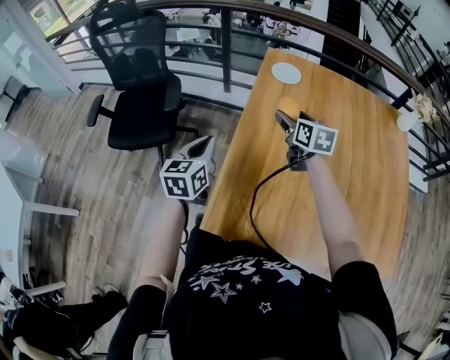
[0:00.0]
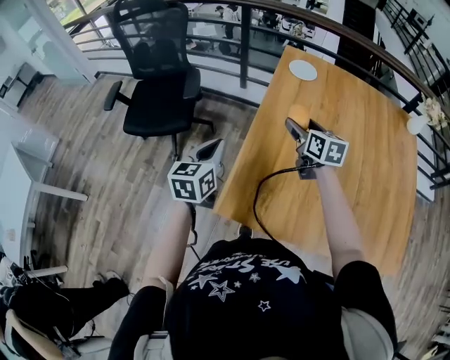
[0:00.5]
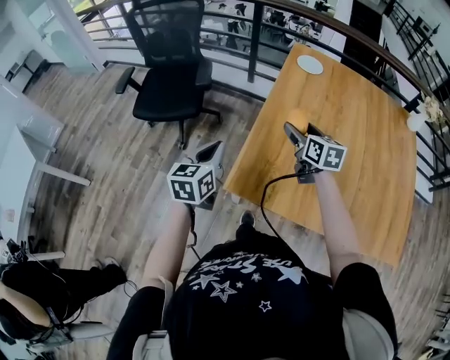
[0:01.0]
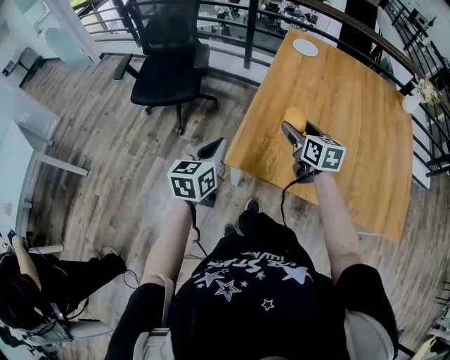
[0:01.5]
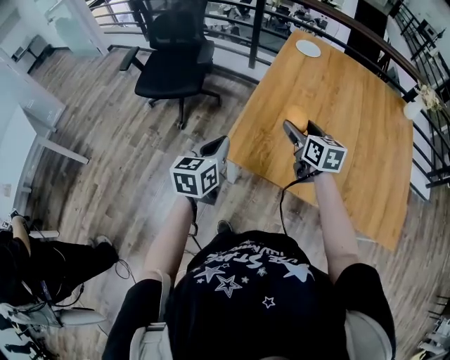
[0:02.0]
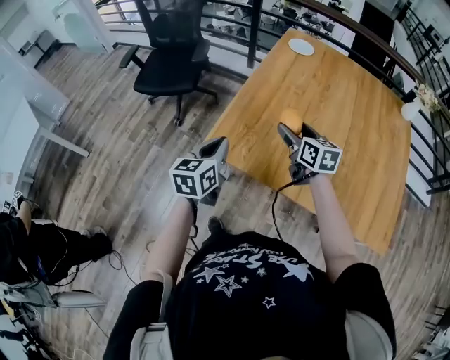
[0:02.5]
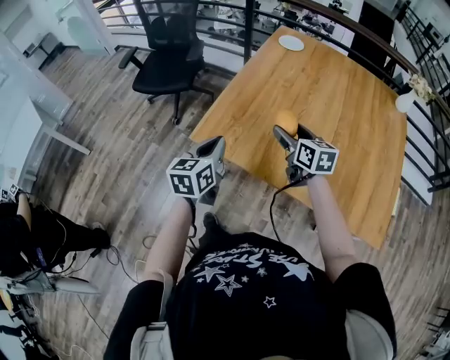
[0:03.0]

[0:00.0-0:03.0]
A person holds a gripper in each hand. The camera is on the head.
0:00.0 to 0:01.5: The two grippers go about 25 cm backward.
0:01.5 to 0:03.0: Both grippers move to the right and backward, roughly 15 cm.

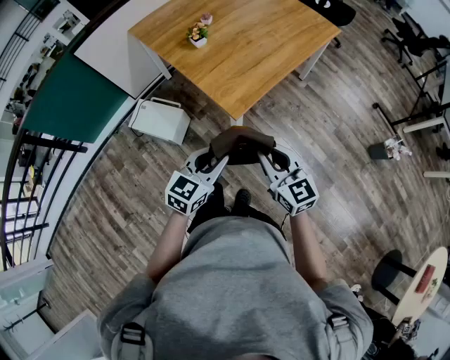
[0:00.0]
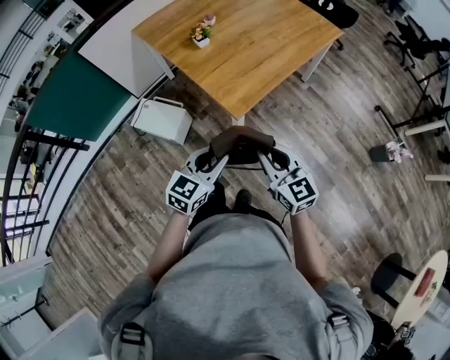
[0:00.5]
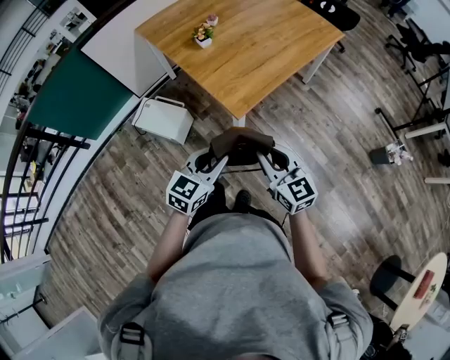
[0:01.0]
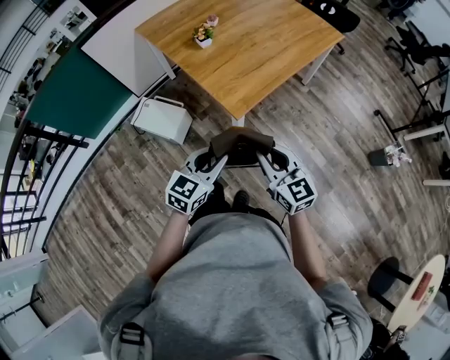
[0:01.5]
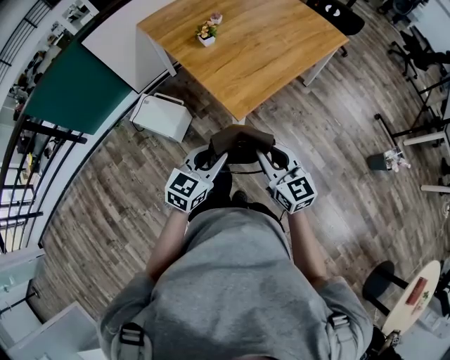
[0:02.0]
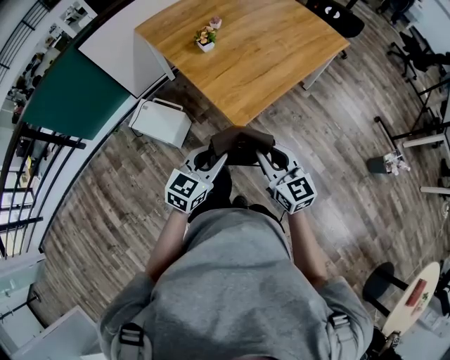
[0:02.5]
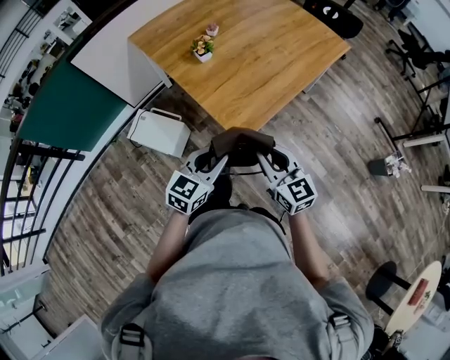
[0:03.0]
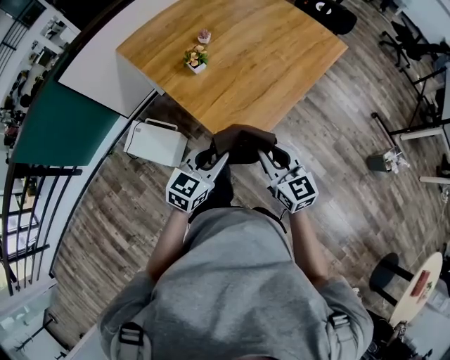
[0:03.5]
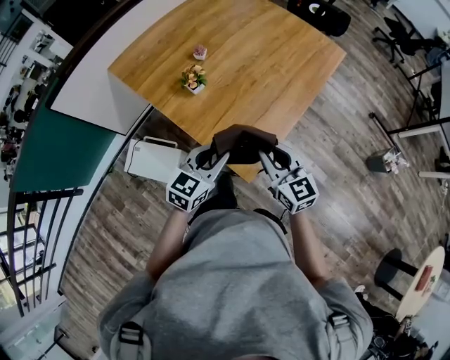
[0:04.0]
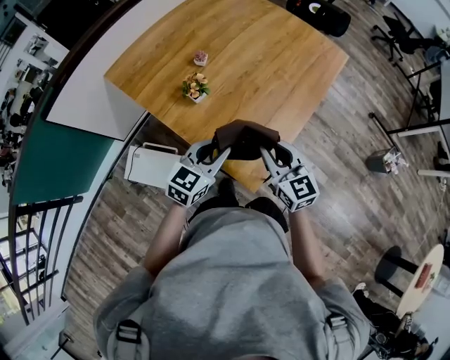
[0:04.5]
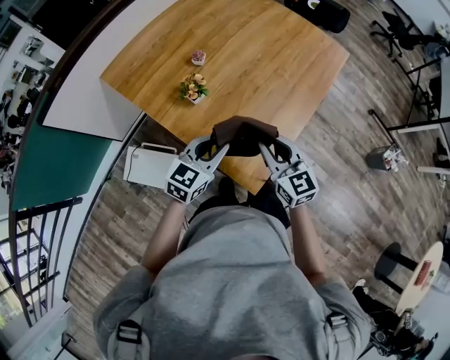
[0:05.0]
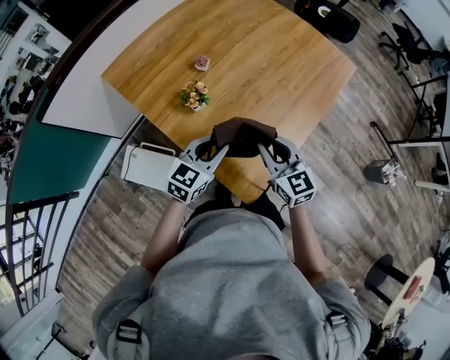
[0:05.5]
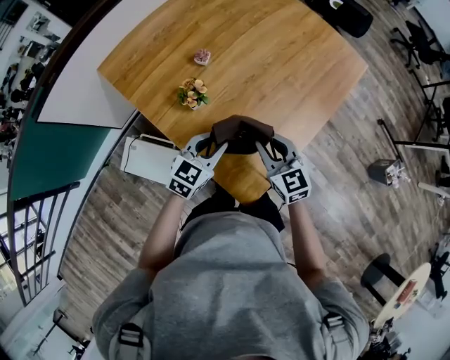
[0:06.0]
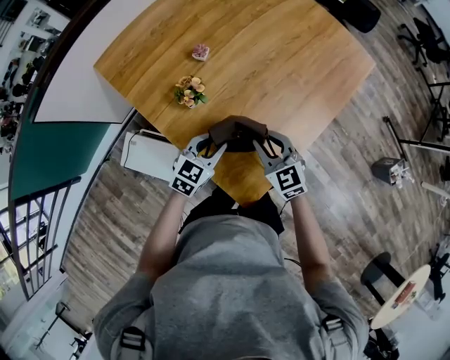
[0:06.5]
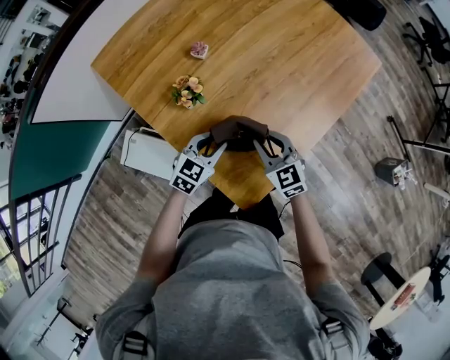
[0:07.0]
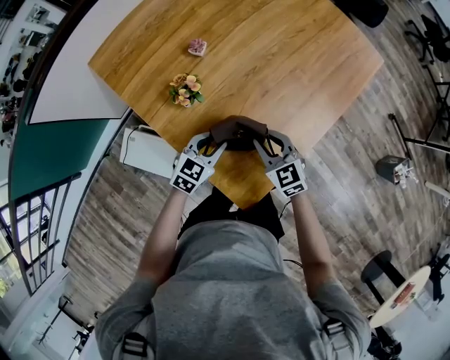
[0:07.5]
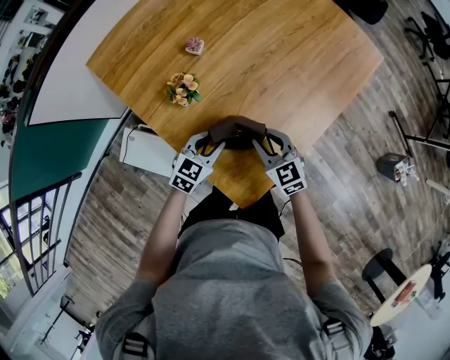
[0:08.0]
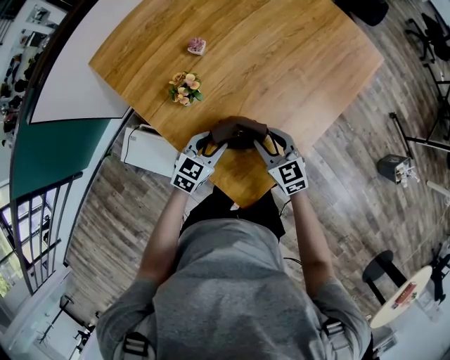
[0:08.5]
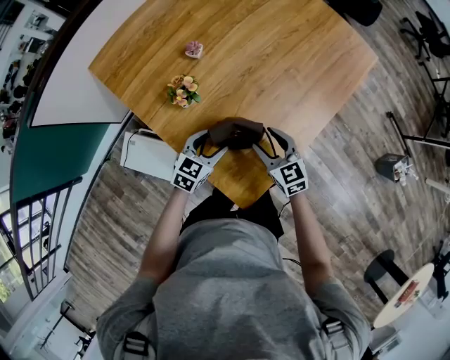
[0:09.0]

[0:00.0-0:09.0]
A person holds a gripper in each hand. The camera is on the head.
0:00.0 to 0:02.0: The grippers move only a little.
0:02.0 to 0:04.5: Both grippers move forward, some 35 cm.
0:04.5 to 0:07.0: Both grippers travel together downward and forward, approximately 20 cm. The right gripper rotates some 20 degrees.
0:07.0 to 0:09.0: The right gripper opens its fingers, while the left gripper opens its fingers.

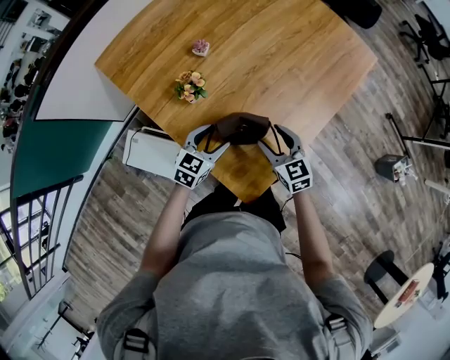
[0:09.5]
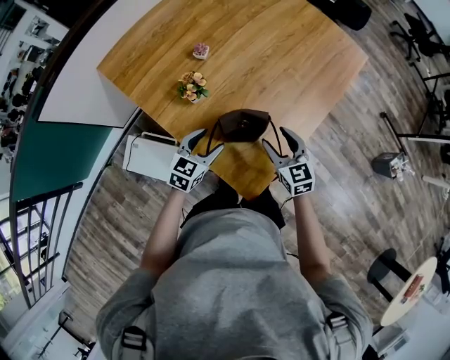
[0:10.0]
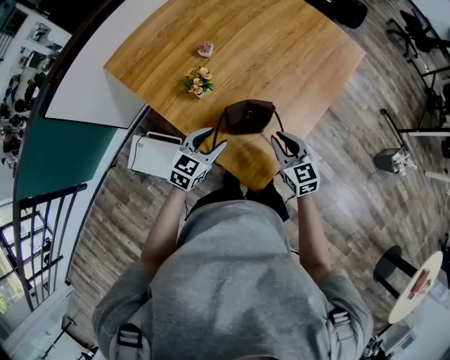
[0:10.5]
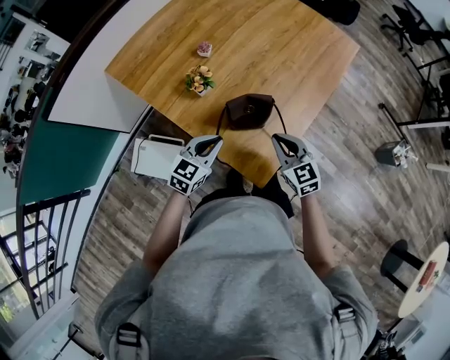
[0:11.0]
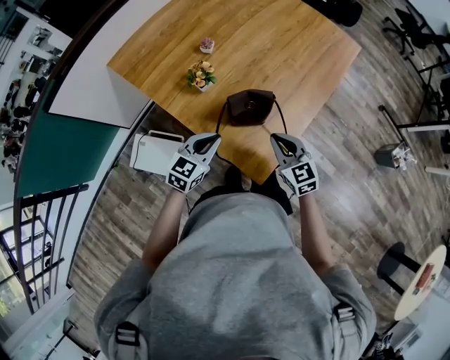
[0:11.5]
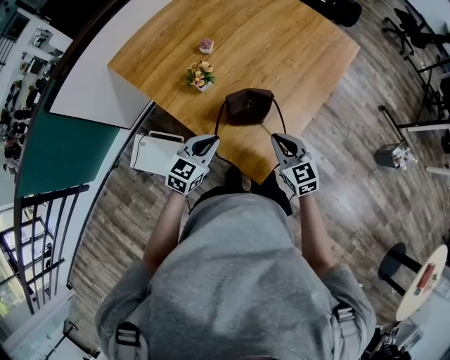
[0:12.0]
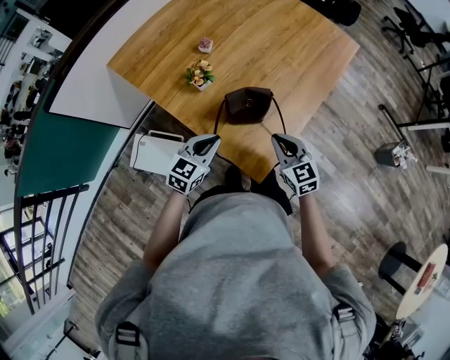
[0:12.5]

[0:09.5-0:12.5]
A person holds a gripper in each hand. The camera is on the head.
0:09.5 to 0:11.0: The two grippers go some 10 cm backward and upward. The left gripper closes up. Meanwhile the right gripper closes up.
0:11.0 to 0:12.5: The grippers move only a little.

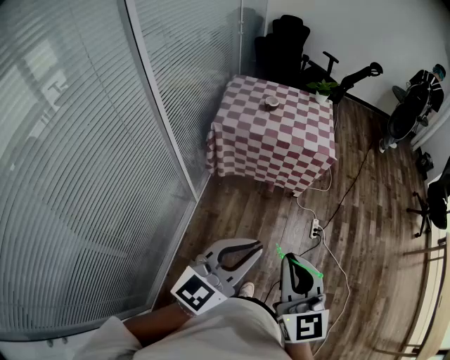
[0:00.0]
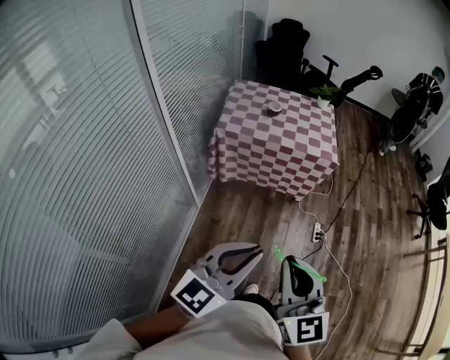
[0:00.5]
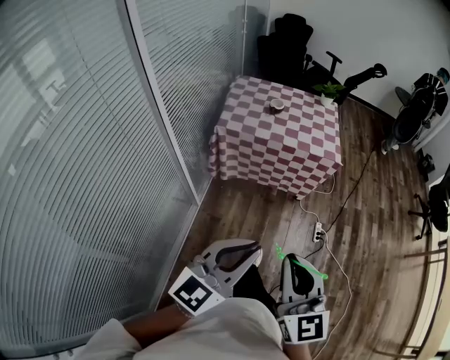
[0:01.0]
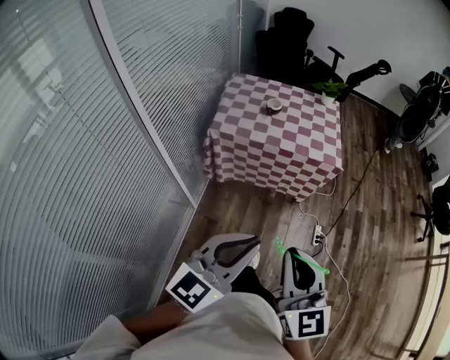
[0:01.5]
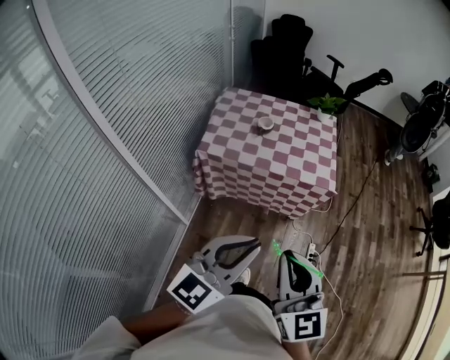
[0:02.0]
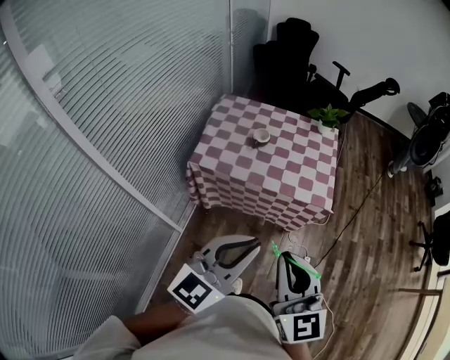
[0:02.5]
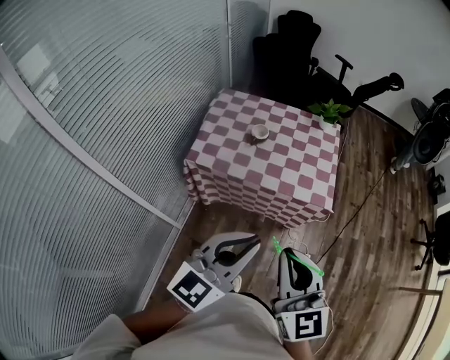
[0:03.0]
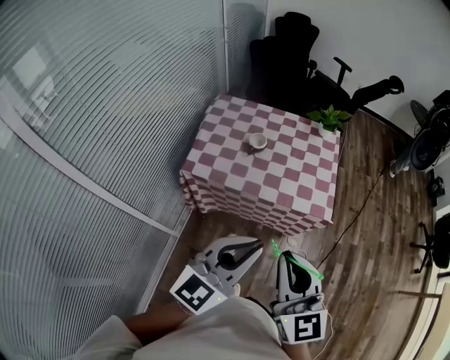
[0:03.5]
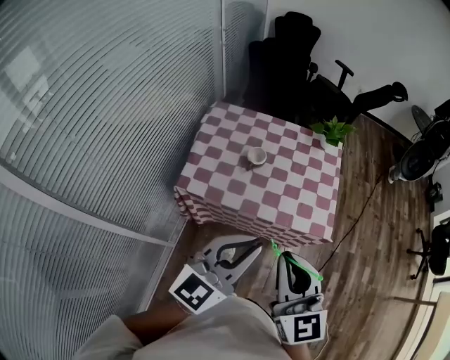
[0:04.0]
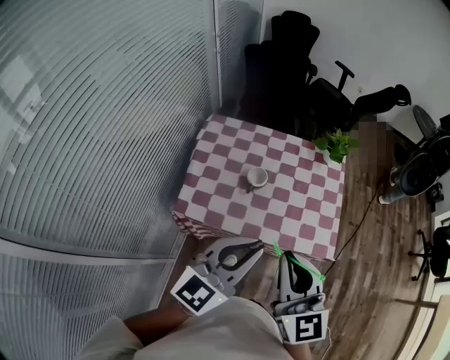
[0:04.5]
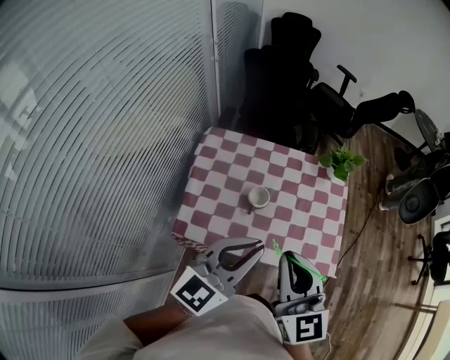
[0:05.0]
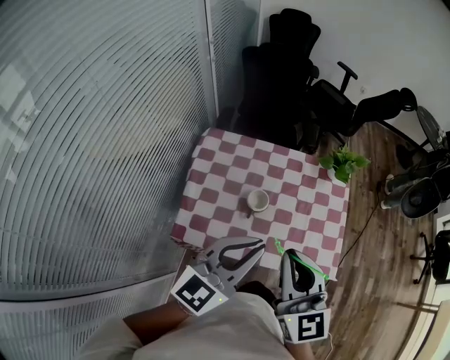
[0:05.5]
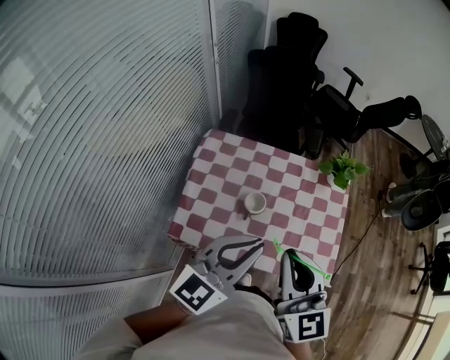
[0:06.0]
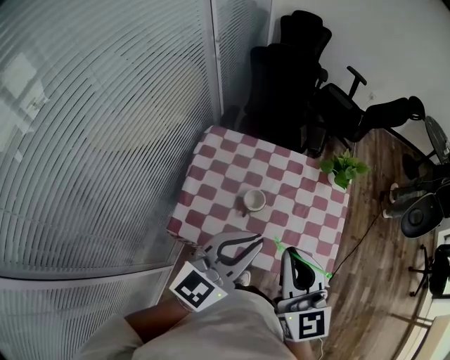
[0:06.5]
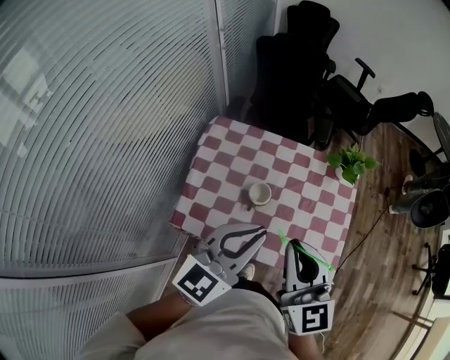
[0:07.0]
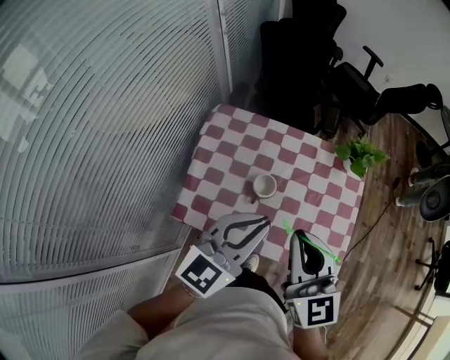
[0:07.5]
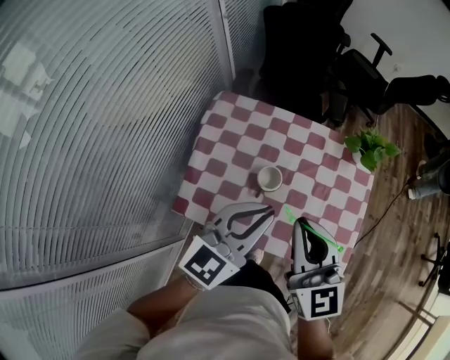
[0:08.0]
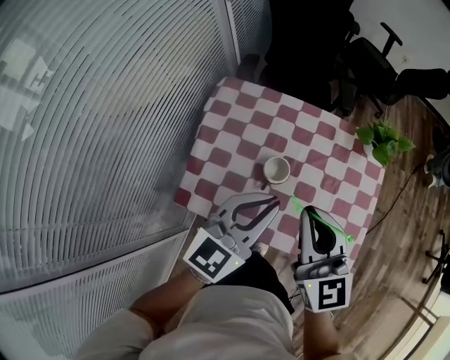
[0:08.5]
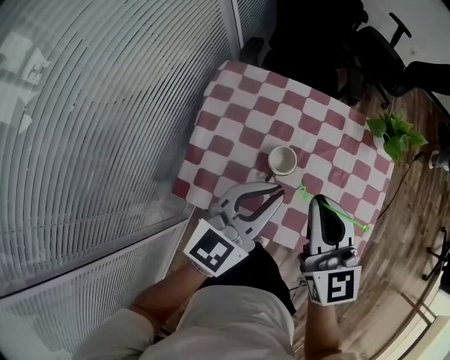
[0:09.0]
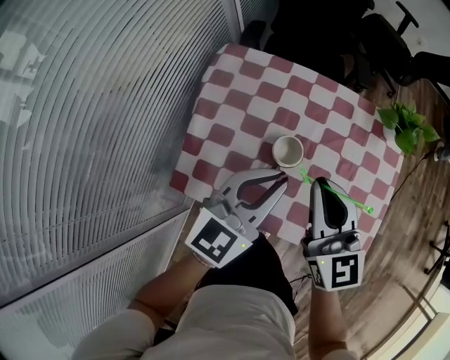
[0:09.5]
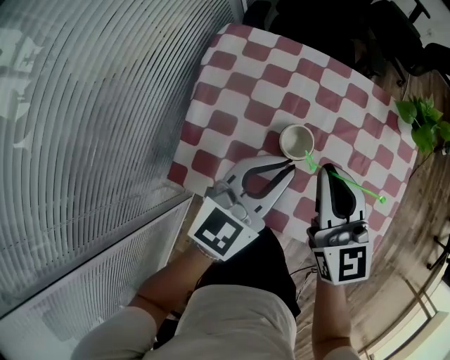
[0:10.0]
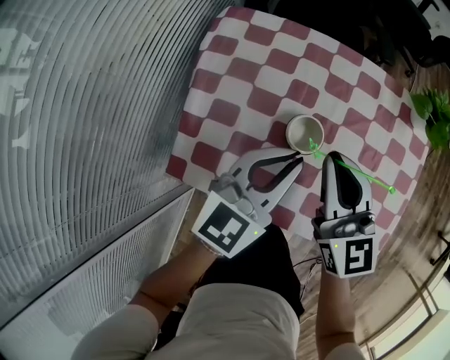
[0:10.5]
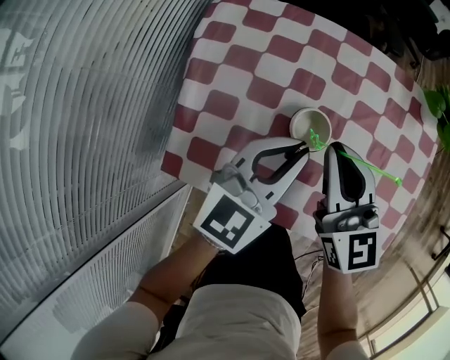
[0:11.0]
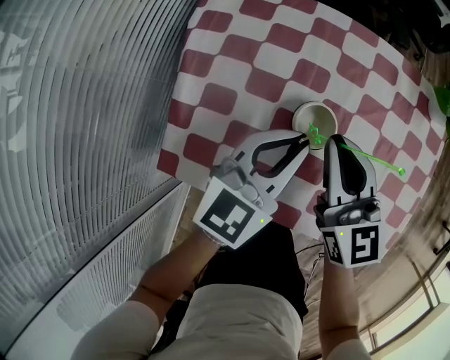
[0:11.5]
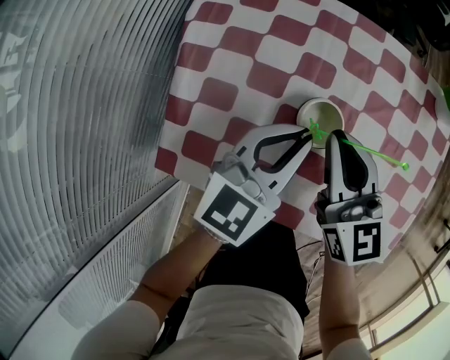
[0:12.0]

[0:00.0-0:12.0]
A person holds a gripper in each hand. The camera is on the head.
0:00.0 to 0:02.0: The grippers both shift forward by about 25 cm.
0:02.0 to 0:04.0: The two grippers go approximately 30 cm forward.
0:04.0 to 0:06.0: Both grippers move forward, about 25 cm.
0:06.0 to 0:08.0: The left gripper moves downward and forward, roughly 10 cm; the right gripper heads forward and downward, covering about 10 cm.
0:08.0 to 0:10.0: The two grippers go approximately 15 cm downward and forward.
0:10.0 to 0:12.0: Both grippers travel together downward, some 10 cm.
